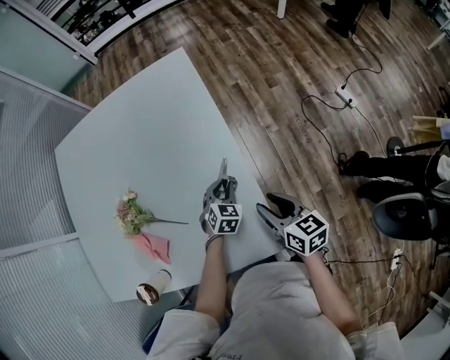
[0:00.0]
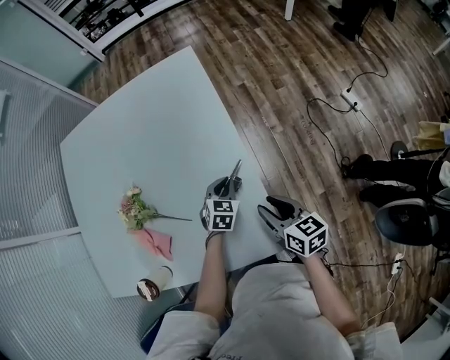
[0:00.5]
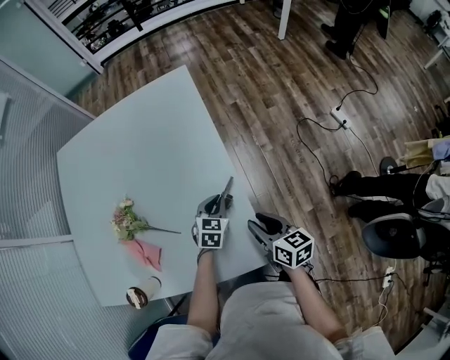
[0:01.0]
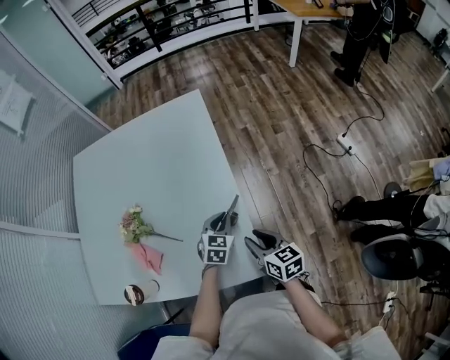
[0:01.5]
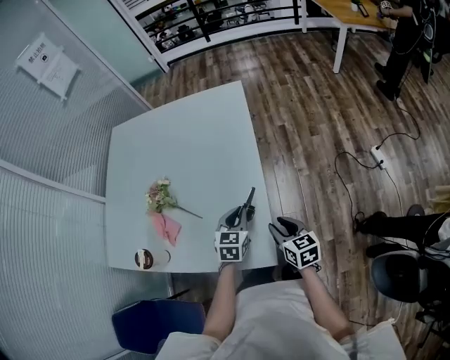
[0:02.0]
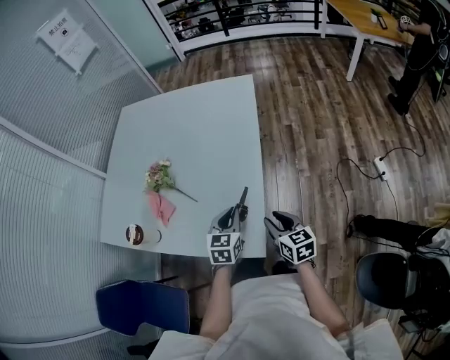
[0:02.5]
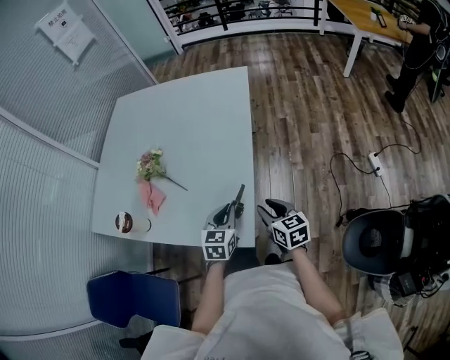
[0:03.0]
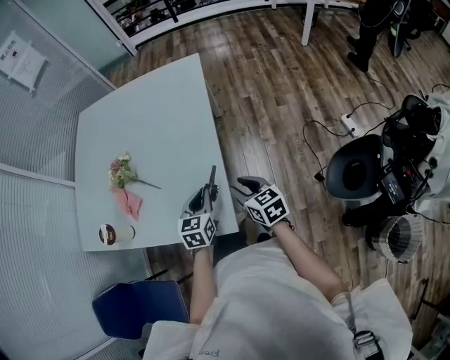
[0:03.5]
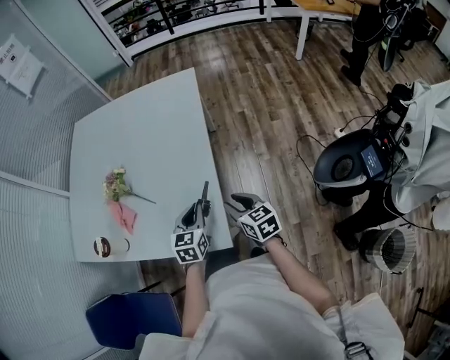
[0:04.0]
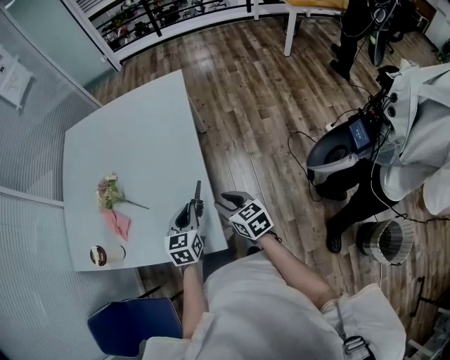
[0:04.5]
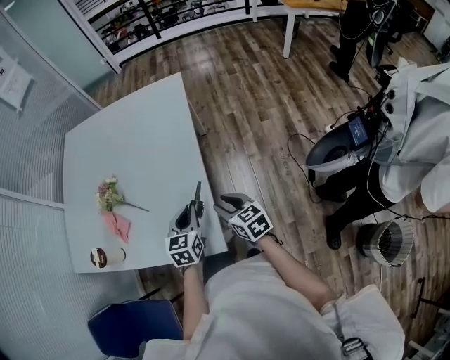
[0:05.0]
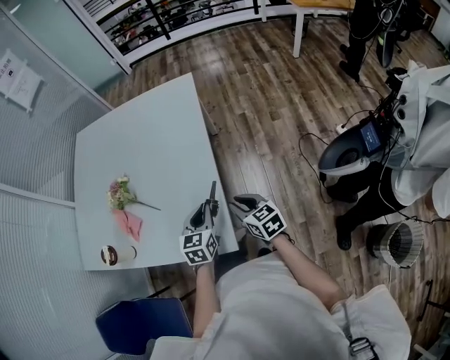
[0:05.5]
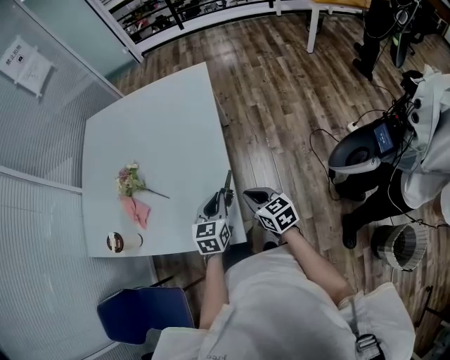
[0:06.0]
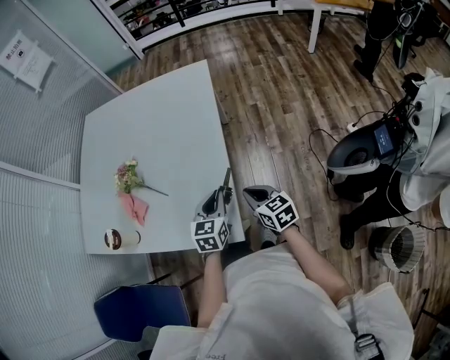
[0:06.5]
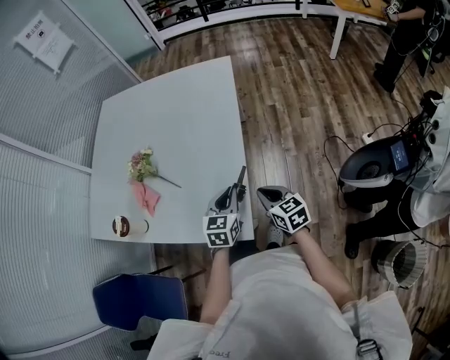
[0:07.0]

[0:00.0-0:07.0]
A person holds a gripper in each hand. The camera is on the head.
0:00.0 to 0:02.0: The left gripper shifts about 20 cm upward and backward, and swivels roughly 30 degrees. The right gripper shifts approximately 5 cm backward.
0:02.0 to 0:03.5: The left gripper shifts about 5 cm backward.
0:03.5 to 0:05.0: The grippers make only small movements.
0:05.0 to 0:07.0: The right gripper closes up.

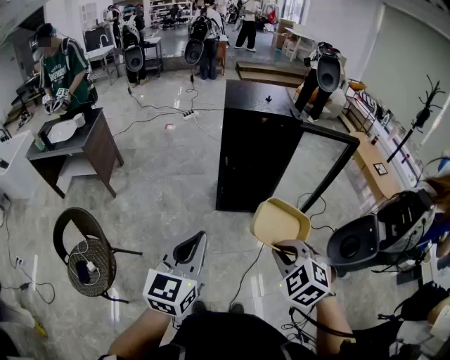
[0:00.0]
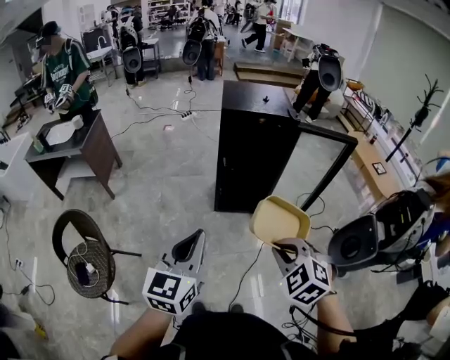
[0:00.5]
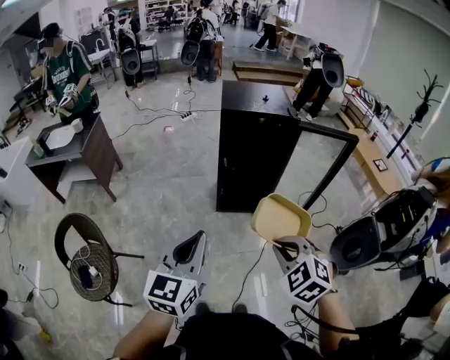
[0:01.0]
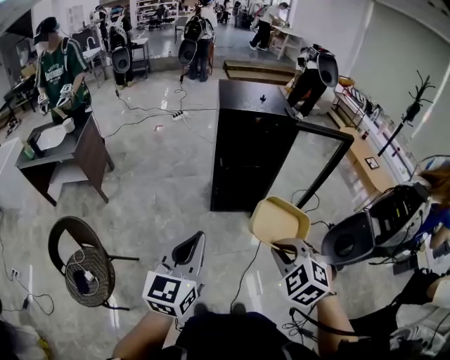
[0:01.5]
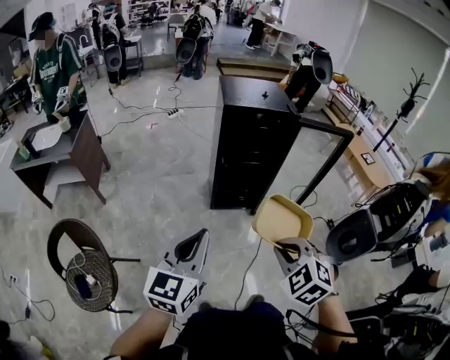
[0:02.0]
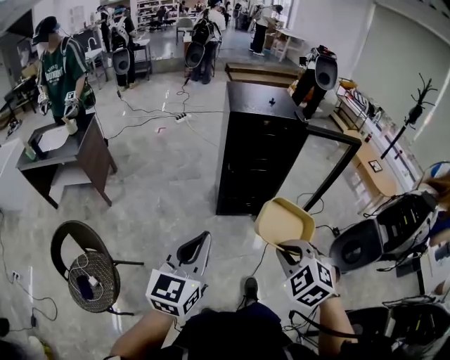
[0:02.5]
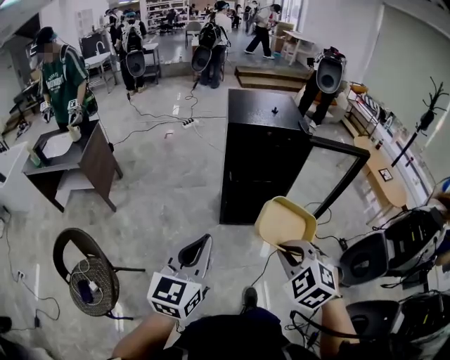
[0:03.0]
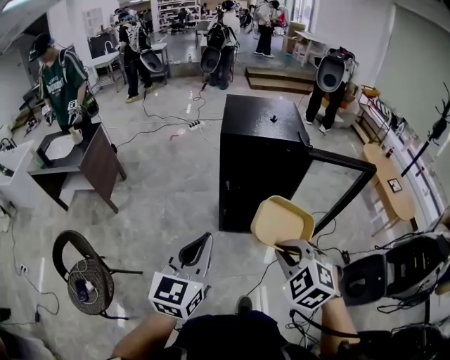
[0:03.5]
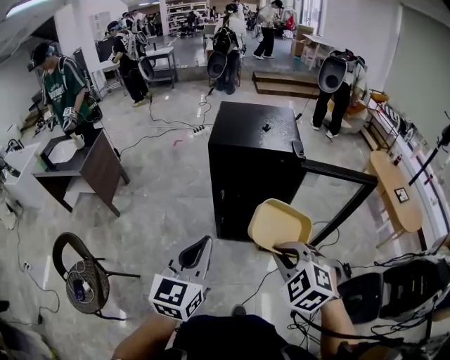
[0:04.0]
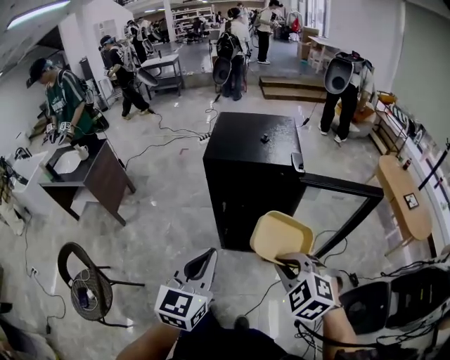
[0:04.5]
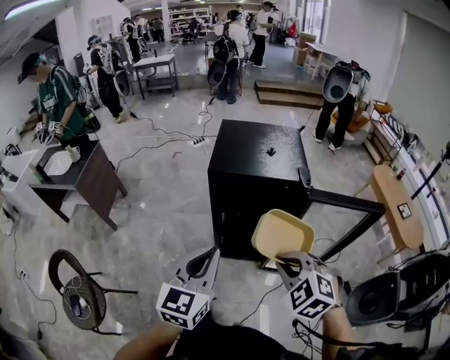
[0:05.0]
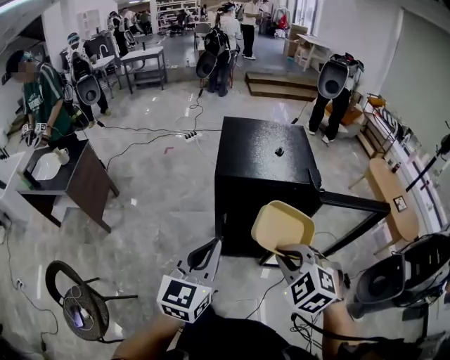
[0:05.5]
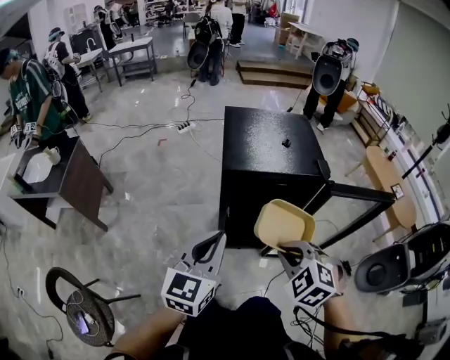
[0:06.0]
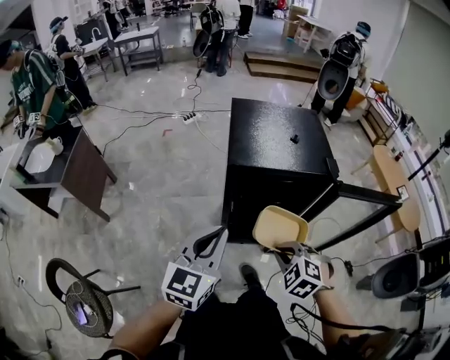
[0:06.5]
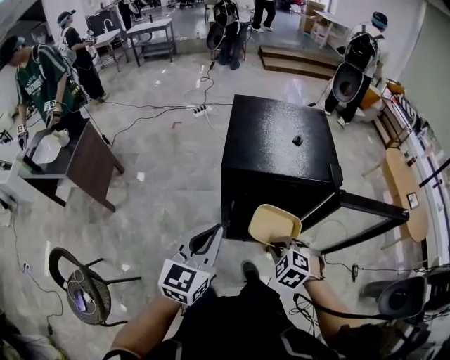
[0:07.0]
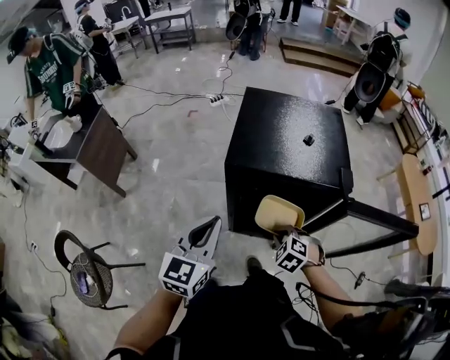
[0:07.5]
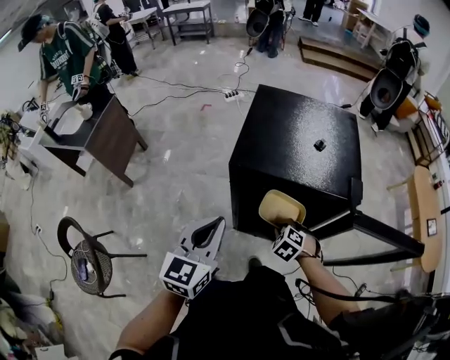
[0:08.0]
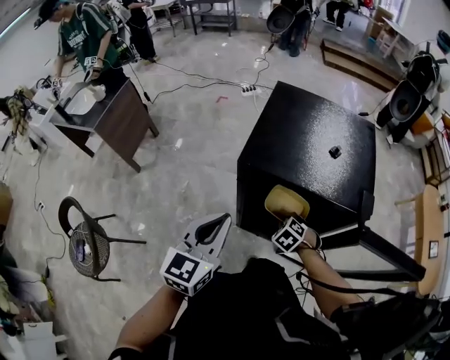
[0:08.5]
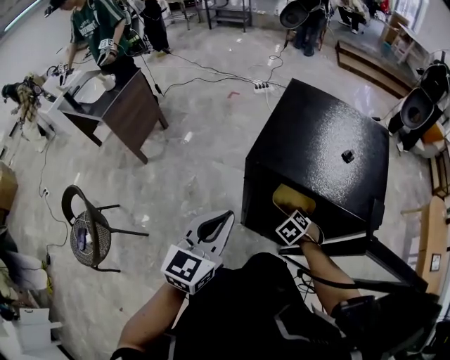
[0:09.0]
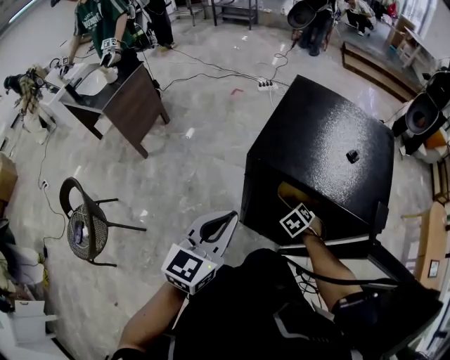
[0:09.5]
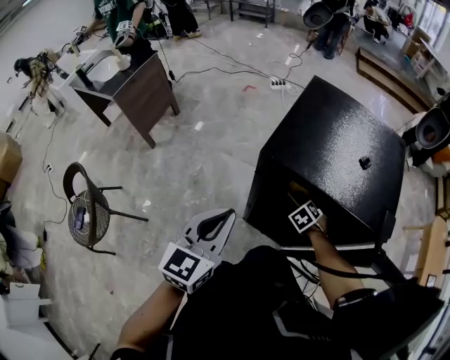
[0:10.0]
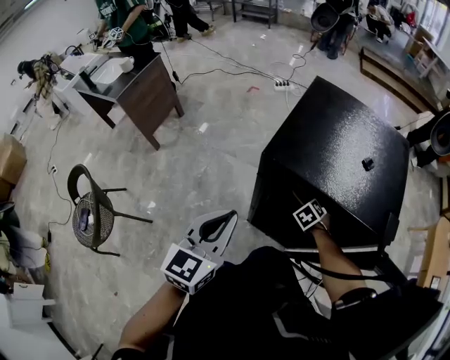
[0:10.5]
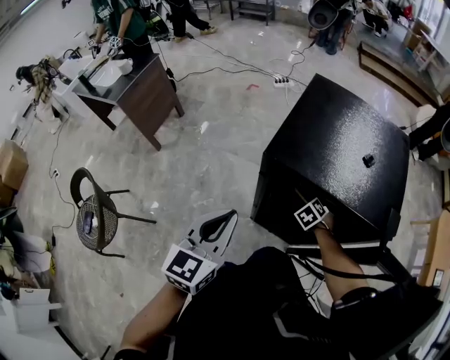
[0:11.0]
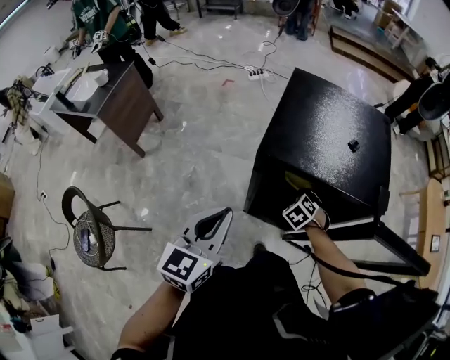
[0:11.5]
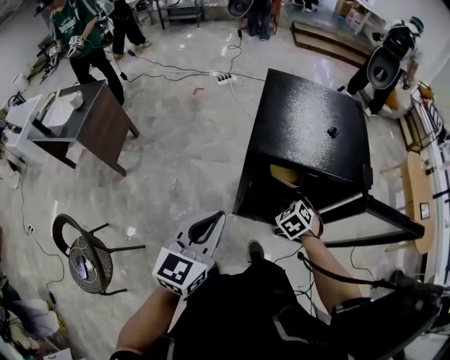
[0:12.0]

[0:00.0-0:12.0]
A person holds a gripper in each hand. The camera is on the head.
0:00.0 to 0:02.0: The grippers both shift to the left by some 5 cm.
0:02.0 to 0:04.0: The grippers both shift forward and to the right by about 25 cm.
0:04.0 to 0:06.0: The right gripper is displaced forward and to the left by some 15 cm, while the left gripper travels forward by approximately 20 cm.
0:06.0 to 0:08.0: The right gripper travels downward and forward by approximately 30 cm. The left gripper heads forward and downward, covering roughly 10 cm.
0:08.0 to 0:10.0: The right gripper shifts roughly 15 cm forward and downward.
0:10.0 to 0:12.0: The right gripper heads upward and backward, covering roughly 15 cm. The left gripper shifts by approximately 5 cm.

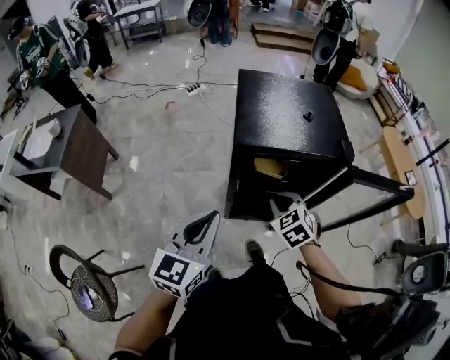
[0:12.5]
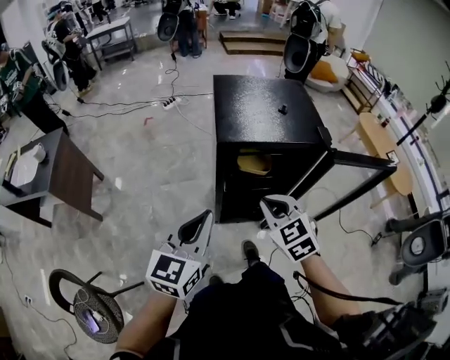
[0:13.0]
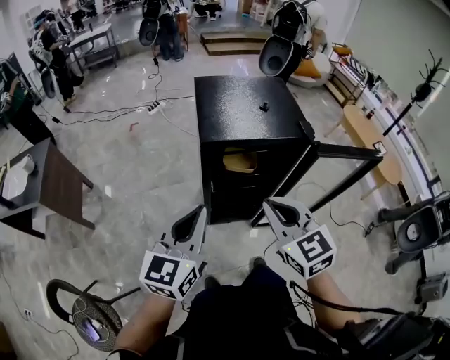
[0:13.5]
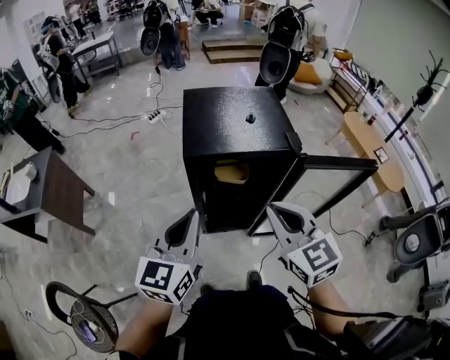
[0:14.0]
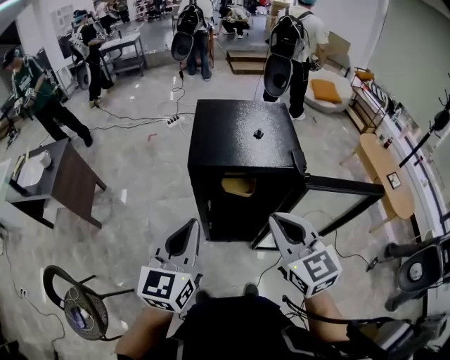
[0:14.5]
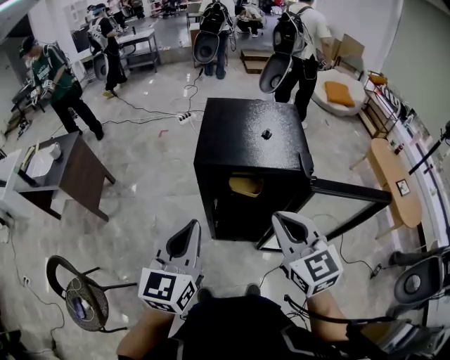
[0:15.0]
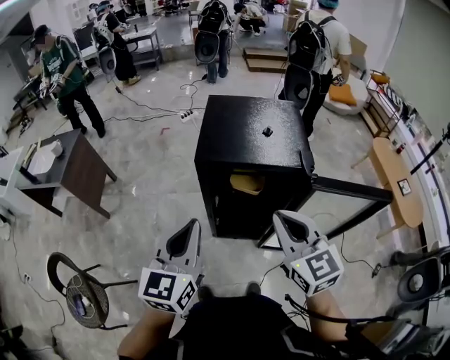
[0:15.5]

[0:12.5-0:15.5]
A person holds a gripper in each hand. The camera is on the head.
0:12.5 to 0:14.0: The left gripper heads upward and to the right, covering some 10 cm. Meanwhile the right gripper travels upward and backward by about 20 cm, and changes its angle by some 30 degrees.
0:14.0 to 0:15.5: There are only small adjustments of the grippers.

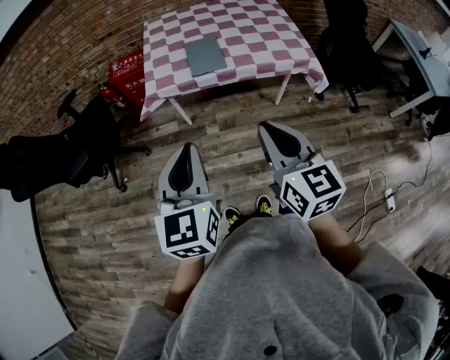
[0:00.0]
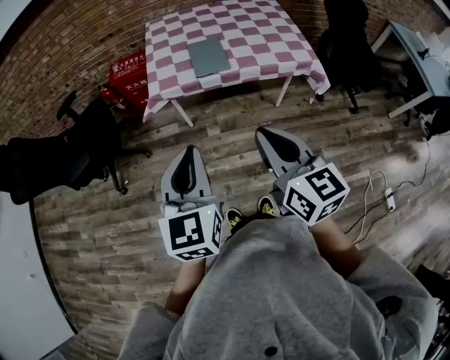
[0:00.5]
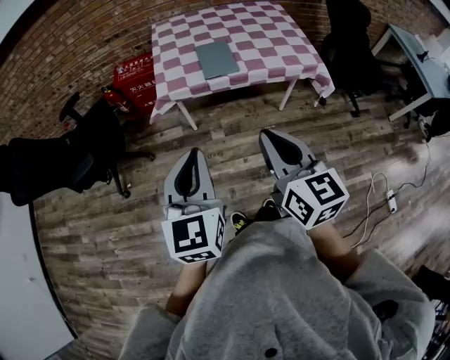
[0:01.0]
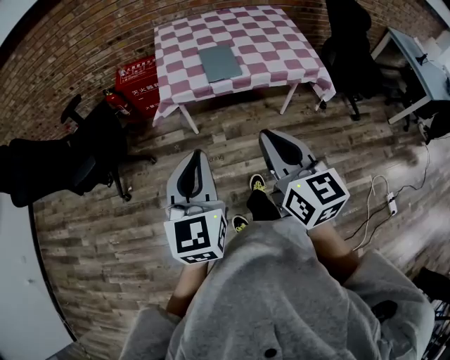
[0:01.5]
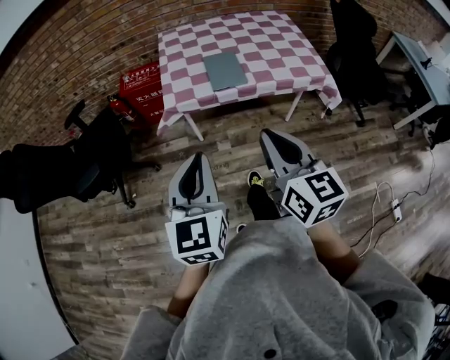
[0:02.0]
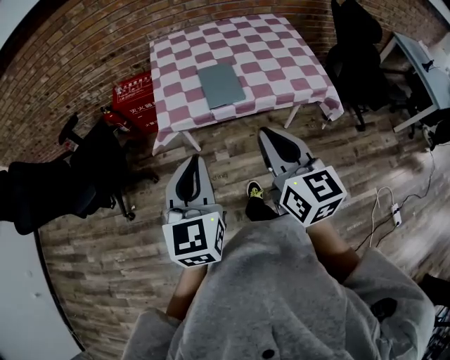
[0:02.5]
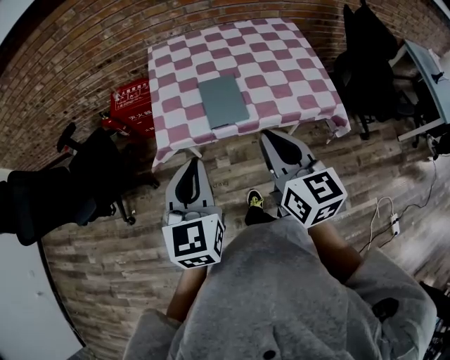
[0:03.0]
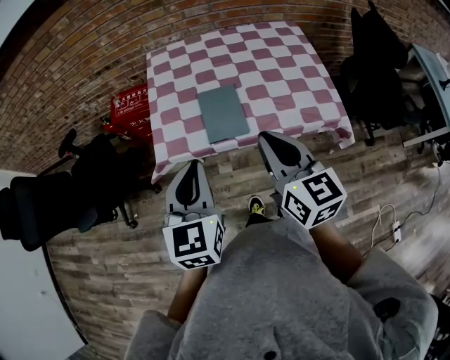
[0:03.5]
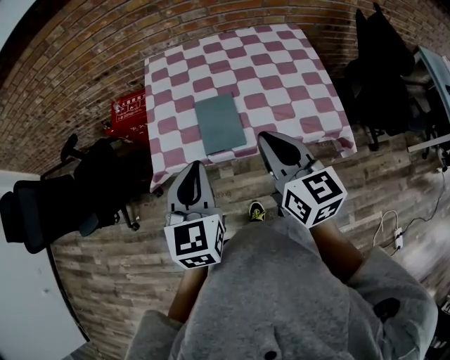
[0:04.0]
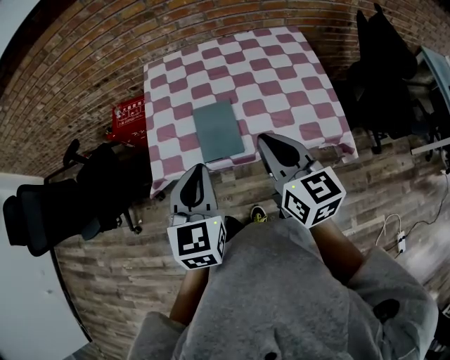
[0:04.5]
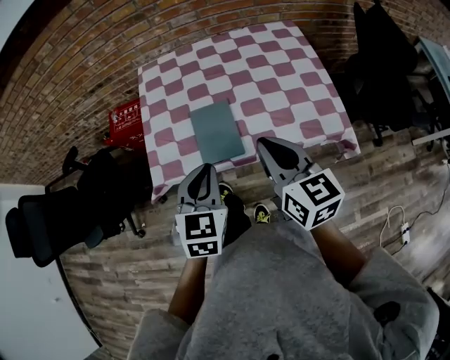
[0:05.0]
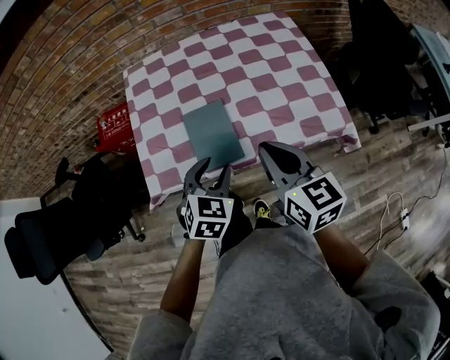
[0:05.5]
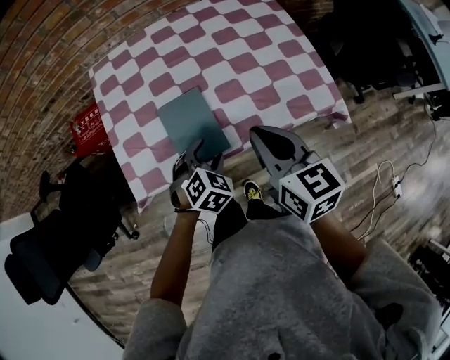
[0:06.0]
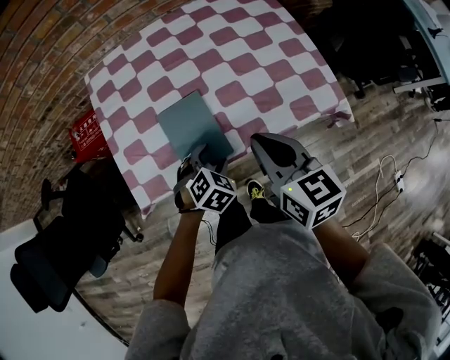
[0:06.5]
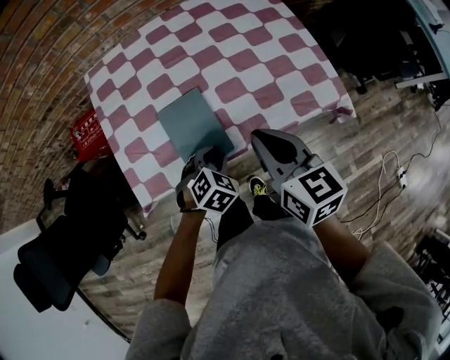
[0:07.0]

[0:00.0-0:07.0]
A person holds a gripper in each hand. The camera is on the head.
0:00.0 to 0:02.0: The grippers both shift to the left by roughly 5 cm.
0:02.0 to 0:03.5: The grippers both shift forward by approximately 25 cm.
0:03.5 to 0:05.0: The left gripper is displaced to the right, downward and forward by roughly 10 cm. Meanwhile the right gripper travels forward and to the right by about 10 cm.
0:05.0 to 0:07.0: The right gripper is displaced downward by roughly 5 cm. Meanwhile the left gripper is displaced downward by roughly 20 cm, and angles its fingers downward, by some 30 degrees.
